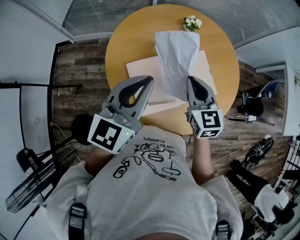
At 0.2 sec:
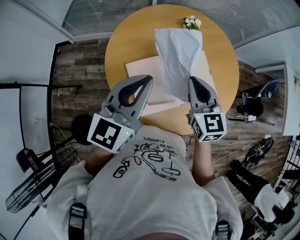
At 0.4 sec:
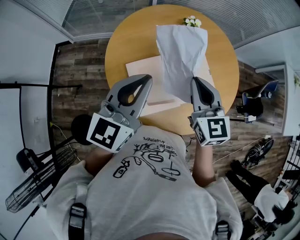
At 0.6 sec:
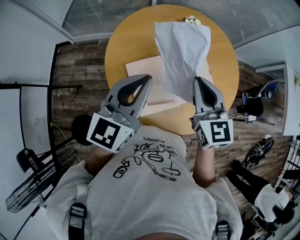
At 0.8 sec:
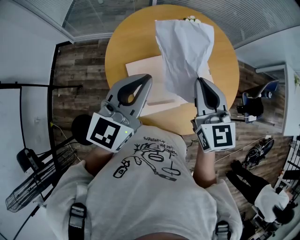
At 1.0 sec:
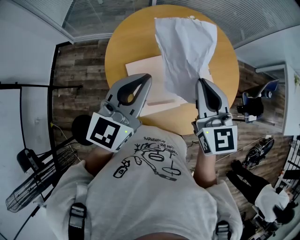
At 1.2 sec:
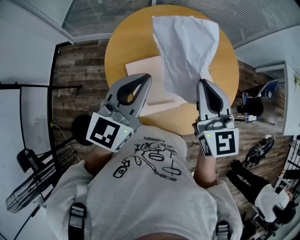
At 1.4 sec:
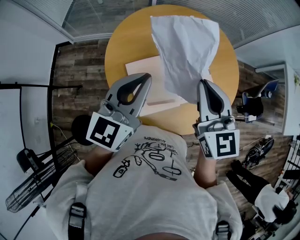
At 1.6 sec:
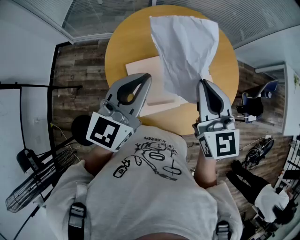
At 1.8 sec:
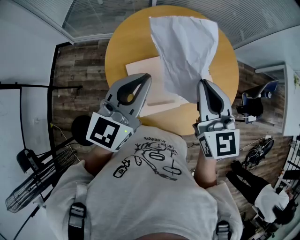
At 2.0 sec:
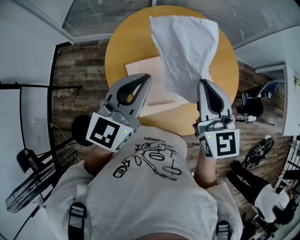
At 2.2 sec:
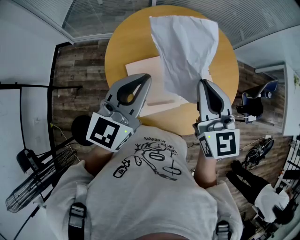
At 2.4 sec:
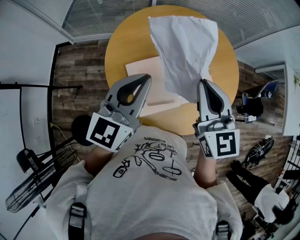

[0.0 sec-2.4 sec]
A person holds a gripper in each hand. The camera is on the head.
0.0 sec to 1.2 sec: The right gripper is displaced upward by some 10 cm.
1.2 sec to 2.4 sec: Both grippers stay put.

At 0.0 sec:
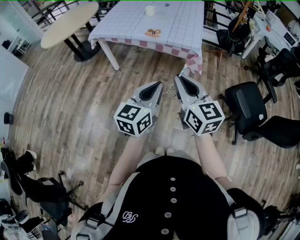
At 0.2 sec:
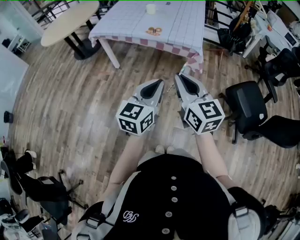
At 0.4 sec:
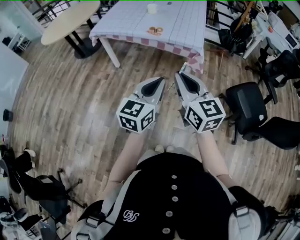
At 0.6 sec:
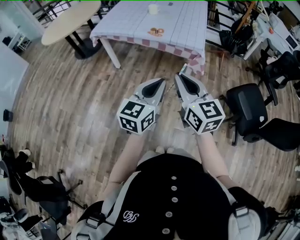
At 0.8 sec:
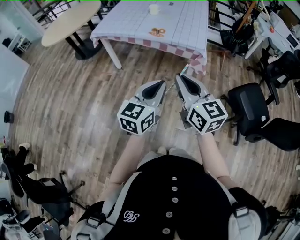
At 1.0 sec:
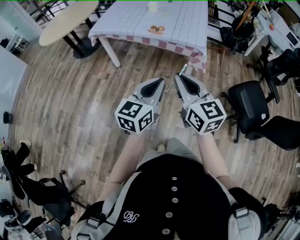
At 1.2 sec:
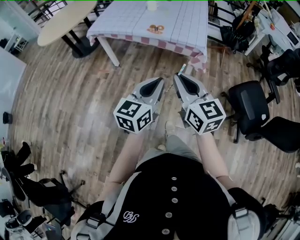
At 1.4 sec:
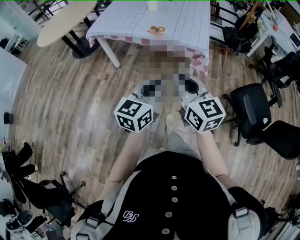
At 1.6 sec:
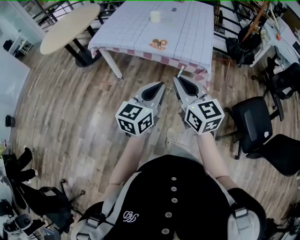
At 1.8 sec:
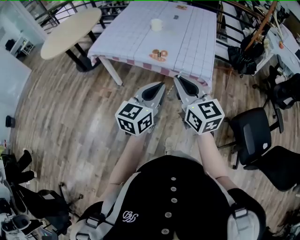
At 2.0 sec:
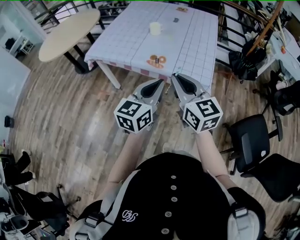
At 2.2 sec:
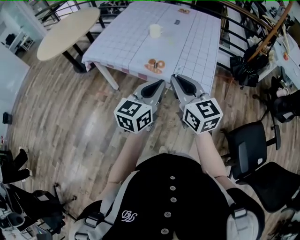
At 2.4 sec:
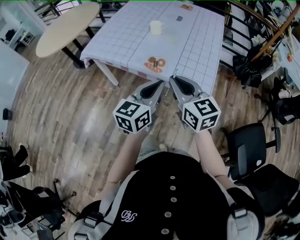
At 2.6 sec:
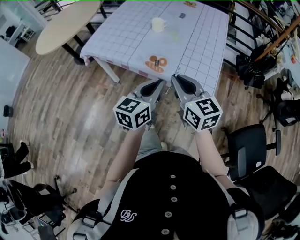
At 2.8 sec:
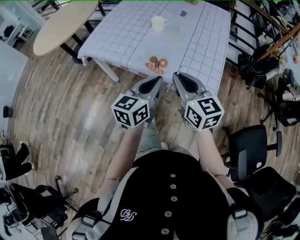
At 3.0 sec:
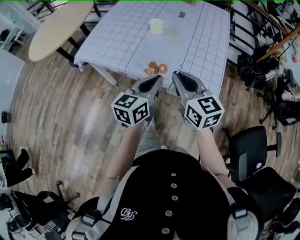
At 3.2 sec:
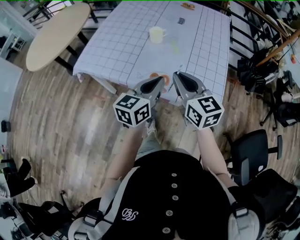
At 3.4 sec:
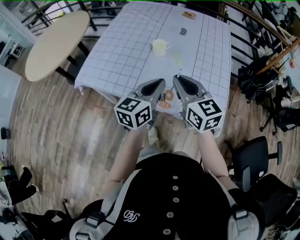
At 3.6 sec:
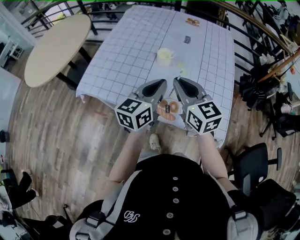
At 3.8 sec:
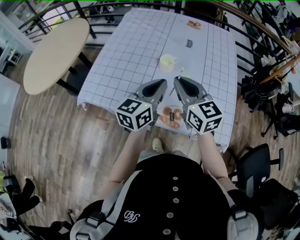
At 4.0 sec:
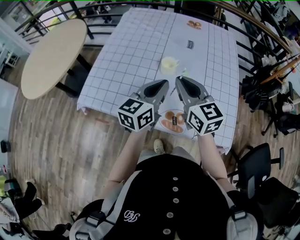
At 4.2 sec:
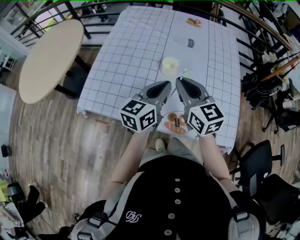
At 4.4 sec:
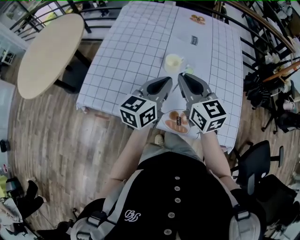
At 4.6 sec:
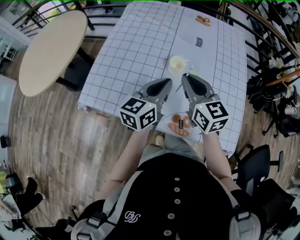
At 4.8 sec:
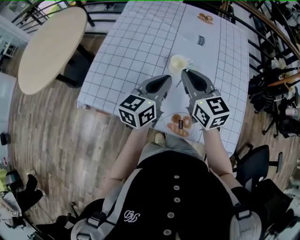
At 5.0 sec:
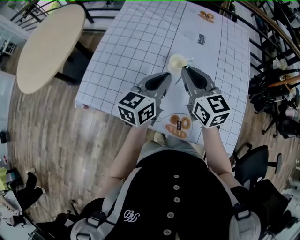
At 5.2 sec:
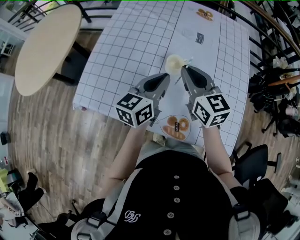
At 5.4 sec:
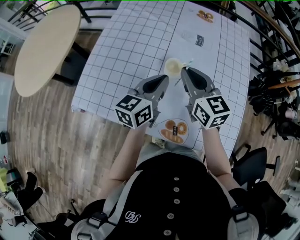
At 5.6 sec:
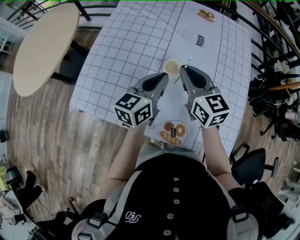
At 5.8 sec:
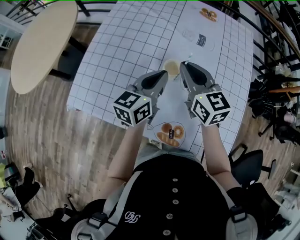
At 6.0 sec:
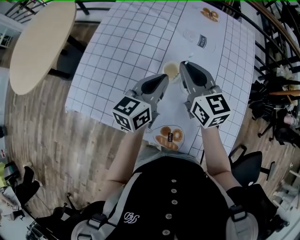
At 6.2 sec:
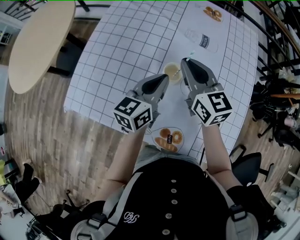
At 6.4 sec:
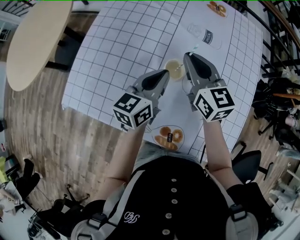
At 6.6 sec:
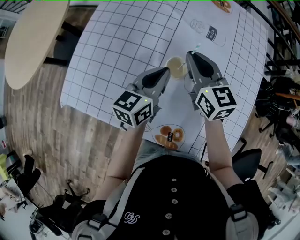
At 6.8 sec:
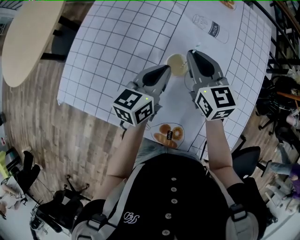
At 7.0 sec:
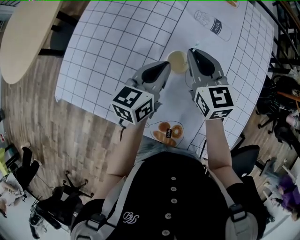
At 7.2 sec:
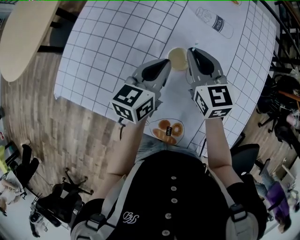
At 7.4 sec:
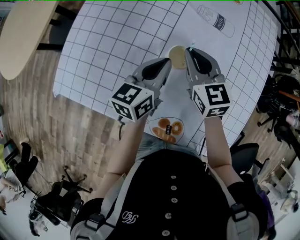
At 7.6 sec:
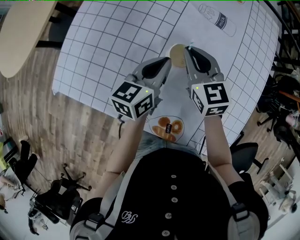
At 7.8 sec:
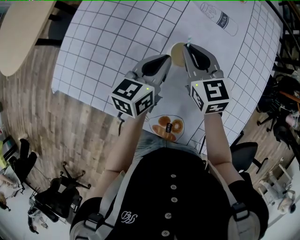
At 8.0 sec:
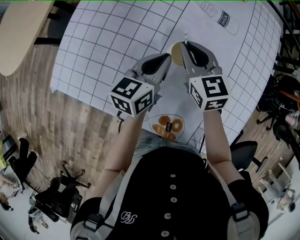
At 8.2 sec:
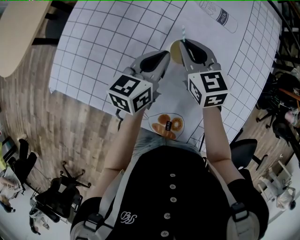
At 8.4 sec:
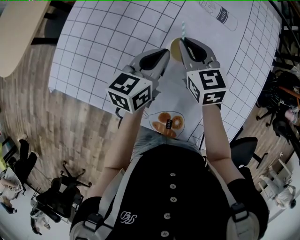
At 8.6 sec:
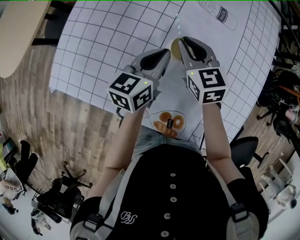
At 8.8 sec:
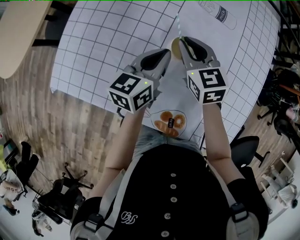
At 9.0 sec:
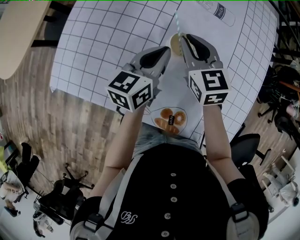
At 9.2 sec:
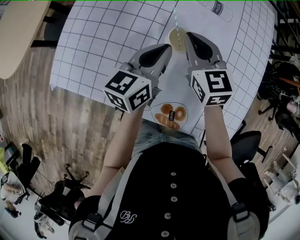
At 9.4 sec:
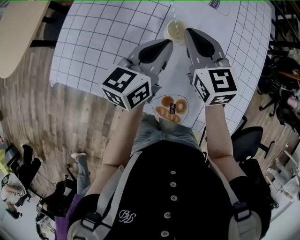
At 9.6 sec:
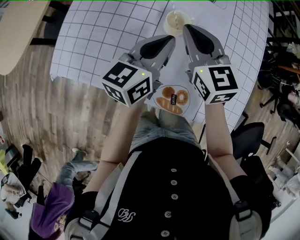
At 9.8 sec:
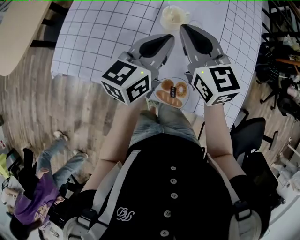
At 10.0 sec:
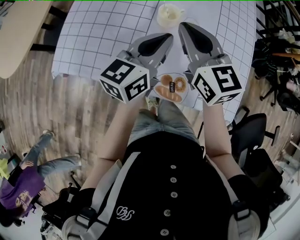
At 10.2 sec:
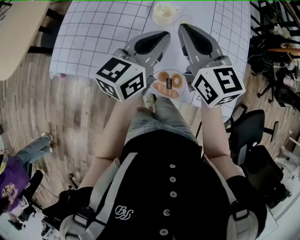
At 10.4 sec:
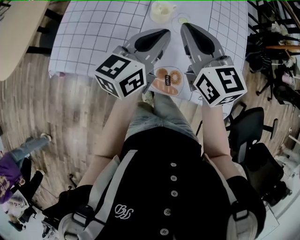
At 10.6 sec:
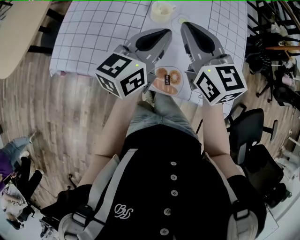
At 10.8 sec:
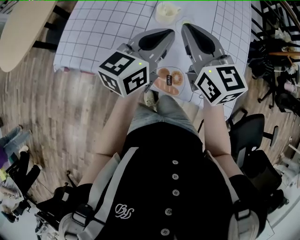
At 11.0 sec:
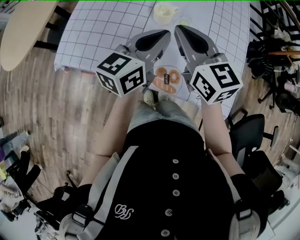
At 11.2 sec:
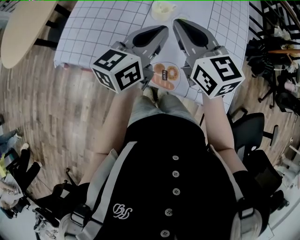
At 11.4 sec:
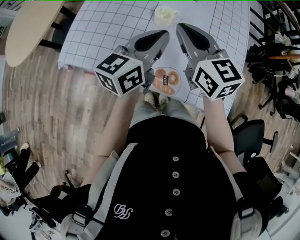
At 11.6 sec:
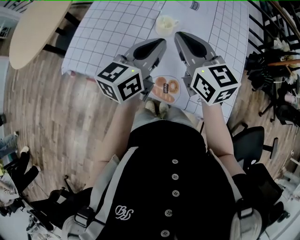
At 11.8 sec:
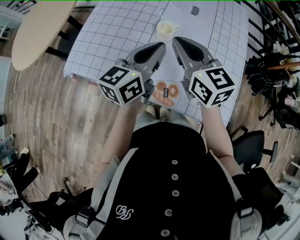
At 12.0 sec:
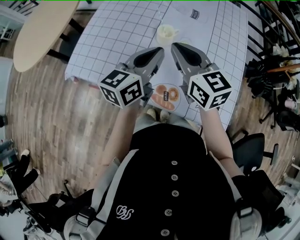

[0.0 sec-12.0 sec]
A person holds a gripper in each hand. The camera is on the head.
0.0 sec to 1.6 sec: The two grippers go about 15 cm forward.
1.6 sec to 3.0 sec: Both grippers travel together forward, approximately 35 cm.
3.0 sec to 4.4 sec: Both grippers move forward and to the left, approximately 30 cm.
4.4 sec to 6.0 sec: Both grippers travel together forward, approximately 15 cm.
6.0 sec to 7.6 sec: Both grippers move downward, roughly 10 cm.
7.6 sec to 9.0 sec: The grippers make only small movements.
9.0 sec to 10.4 sec: The grippers both shift backward and upward by roughly 20 cm.
10.4 sec to 12.0 sec: The grippers stay close to where they were, moving slightly.

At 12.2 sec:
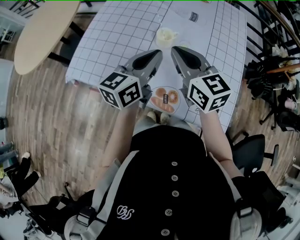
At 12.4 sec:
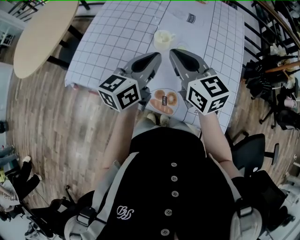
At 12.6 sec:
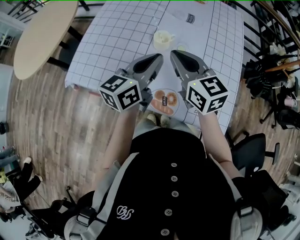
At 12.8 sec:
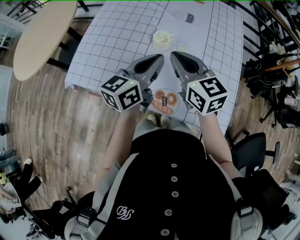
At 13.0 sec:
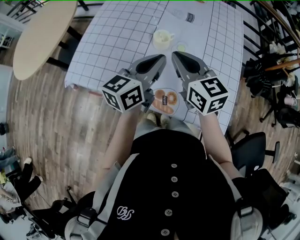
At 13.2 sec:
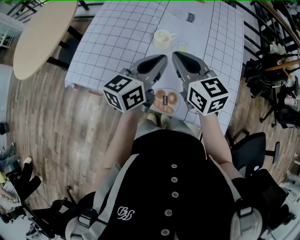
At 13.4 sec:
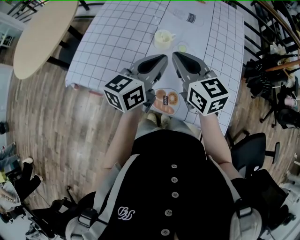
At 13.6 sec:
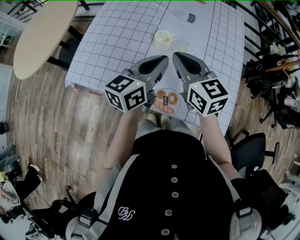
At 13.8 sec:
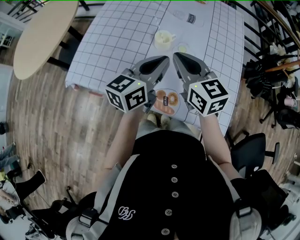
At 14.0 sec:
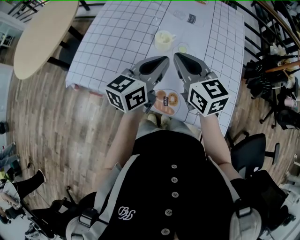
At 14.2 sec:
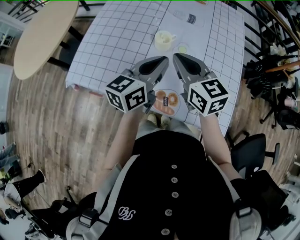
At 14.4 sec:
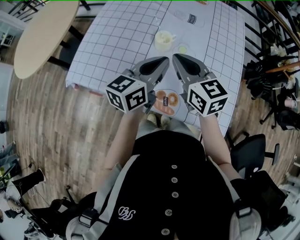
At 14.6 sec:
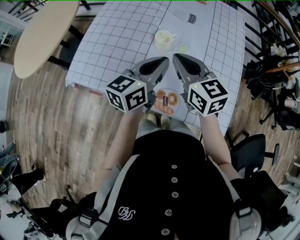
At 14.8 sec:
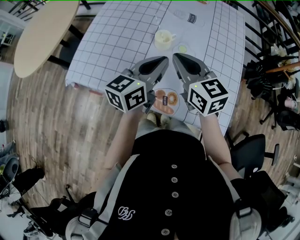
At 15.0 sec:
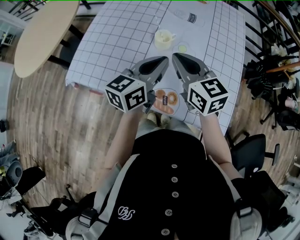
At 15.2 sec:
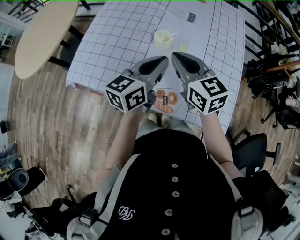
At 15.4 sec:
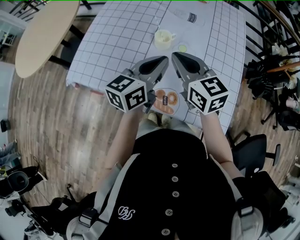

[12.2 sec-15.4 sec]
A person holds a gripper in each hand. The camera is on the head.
12.2 sec to 13.8 sec: The grippers stay close to where they were, moving slightly.
13.8 sec to 15.4 sec: Both grippers stay about where they are.

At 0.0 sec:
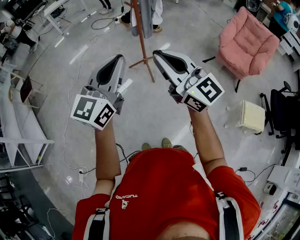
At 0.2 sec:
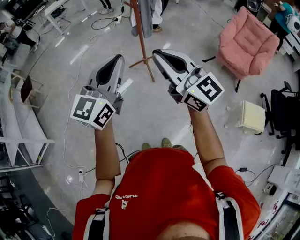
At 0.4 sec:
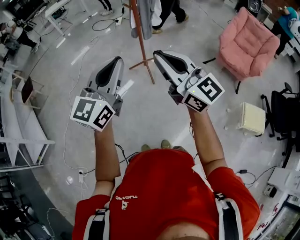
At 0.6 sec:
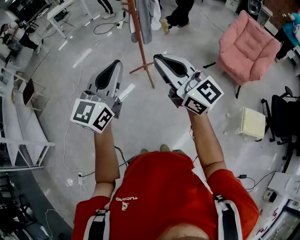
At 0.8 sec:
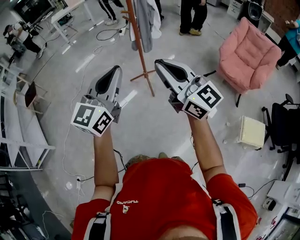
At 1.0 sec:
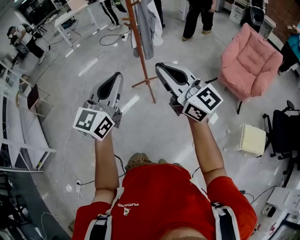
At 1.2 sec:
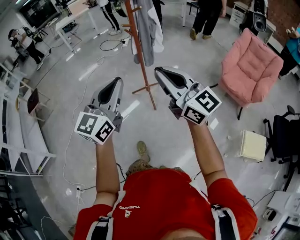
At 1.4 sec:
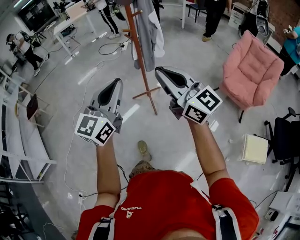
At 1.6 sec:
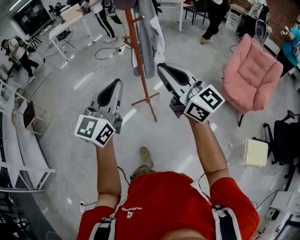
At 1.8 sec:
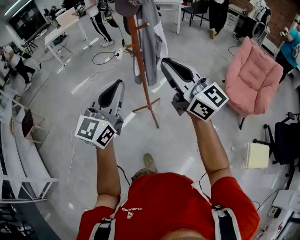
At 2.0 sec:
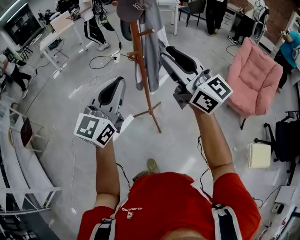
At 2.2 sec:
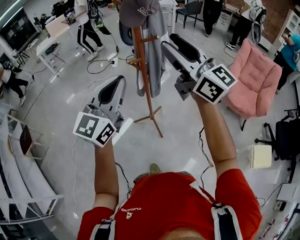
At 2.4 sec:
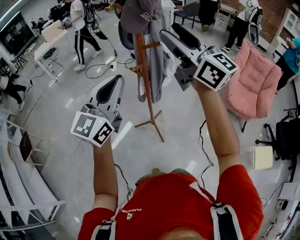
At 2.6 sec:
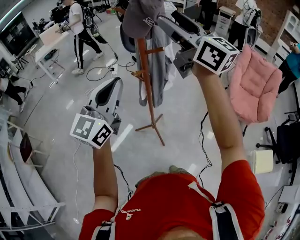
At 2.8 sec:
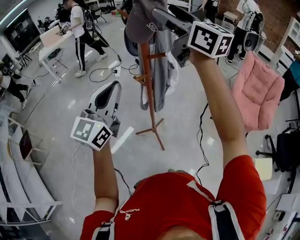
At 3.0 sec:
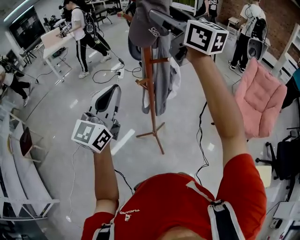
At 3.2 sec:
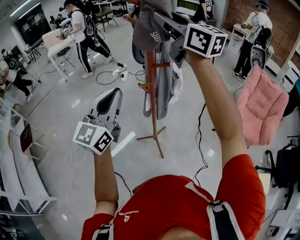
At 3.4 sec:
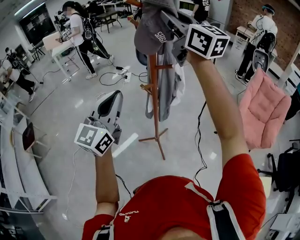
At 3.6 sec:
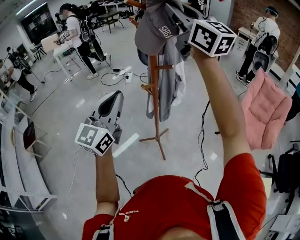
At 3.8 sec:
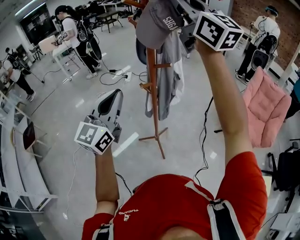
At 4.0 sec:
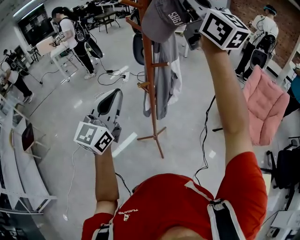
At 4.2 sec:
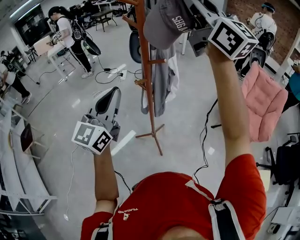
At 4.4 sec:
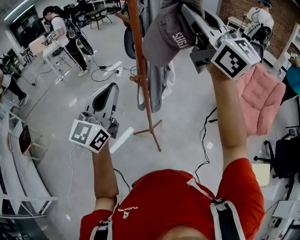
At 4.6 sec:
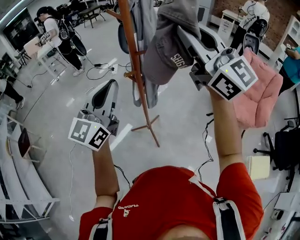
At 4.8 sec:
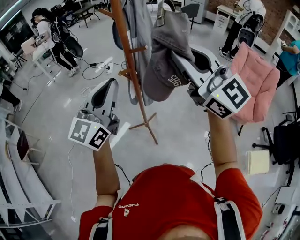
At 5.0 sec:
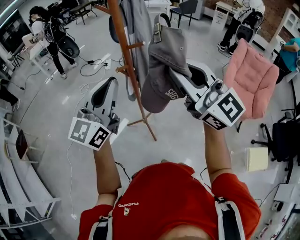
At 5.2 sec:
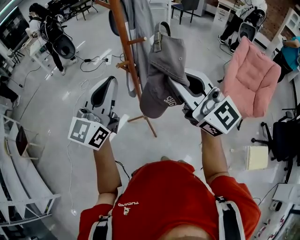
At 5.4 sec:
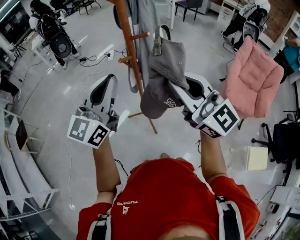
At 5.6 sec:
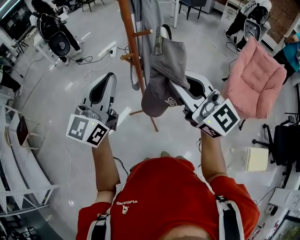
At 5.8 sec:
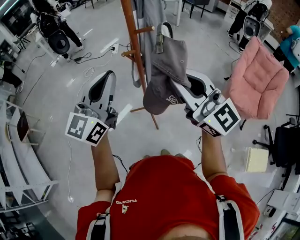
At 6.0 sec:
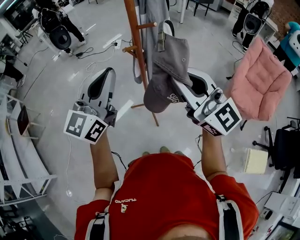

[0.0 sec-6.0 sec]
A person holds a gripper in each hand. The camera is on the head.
0.0 sec to 1.6 sec: Both grippers move forward, about 20 cm.
1.6 sec to 3.0 sec: The left gripper is displaced forward by roughly 25 cm, while the right gripper goes approximately 40 cm forward and upward, and opens up.
3.0 sec to 4.4 sec: The right gripper goes about 15 cm backward and to the right, and closes its fingers.
4.4 sec to 6.0 sec: The right gripper is displaced downward by roughly 25 cm.
